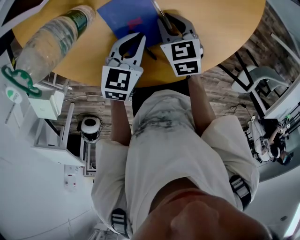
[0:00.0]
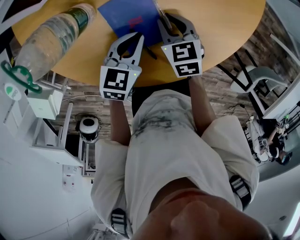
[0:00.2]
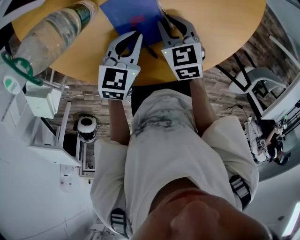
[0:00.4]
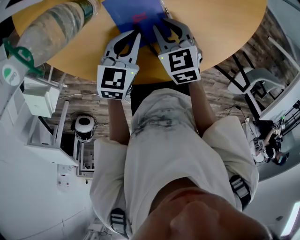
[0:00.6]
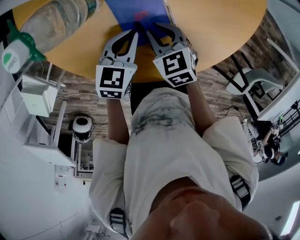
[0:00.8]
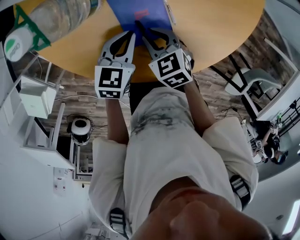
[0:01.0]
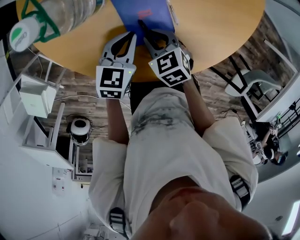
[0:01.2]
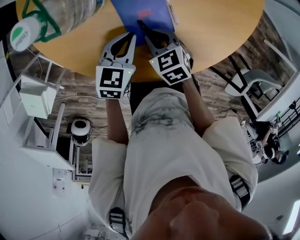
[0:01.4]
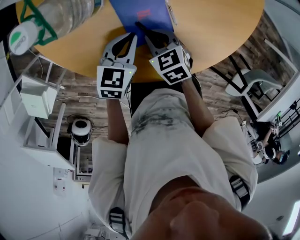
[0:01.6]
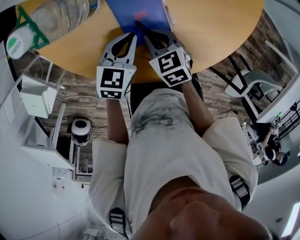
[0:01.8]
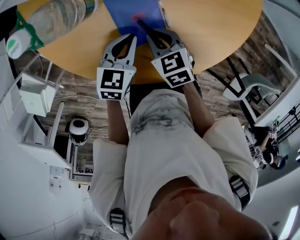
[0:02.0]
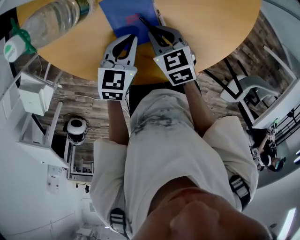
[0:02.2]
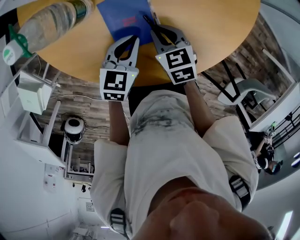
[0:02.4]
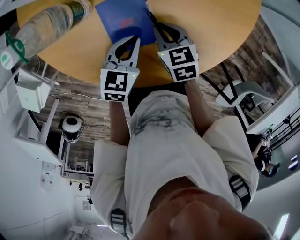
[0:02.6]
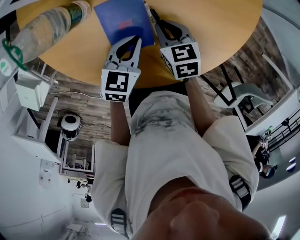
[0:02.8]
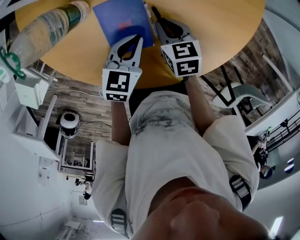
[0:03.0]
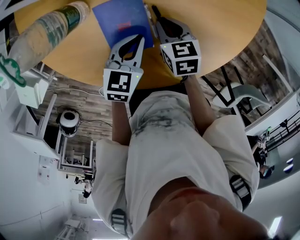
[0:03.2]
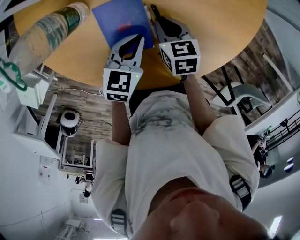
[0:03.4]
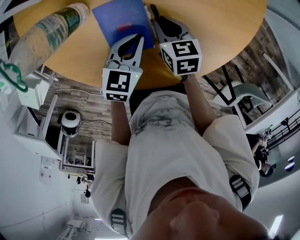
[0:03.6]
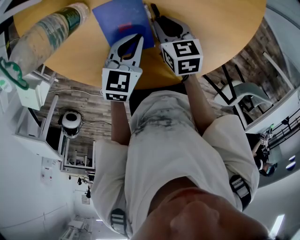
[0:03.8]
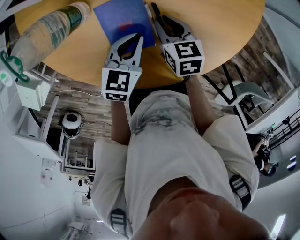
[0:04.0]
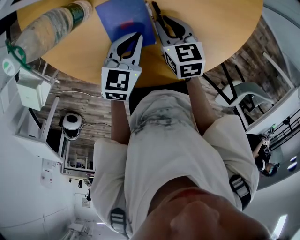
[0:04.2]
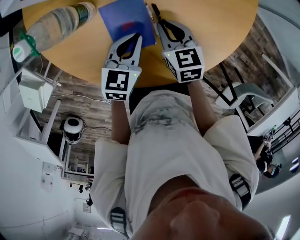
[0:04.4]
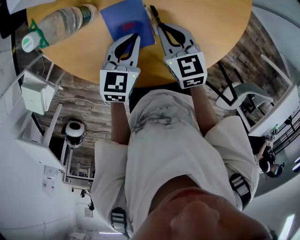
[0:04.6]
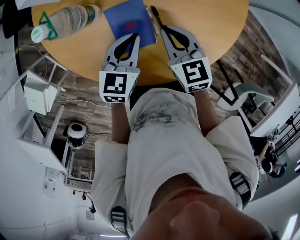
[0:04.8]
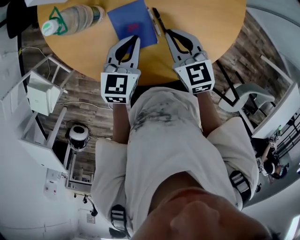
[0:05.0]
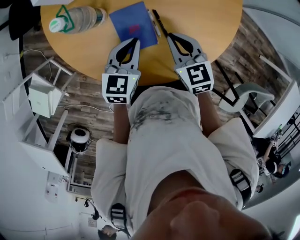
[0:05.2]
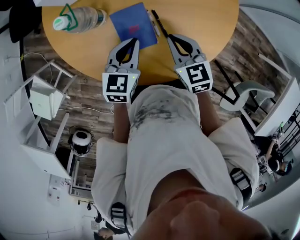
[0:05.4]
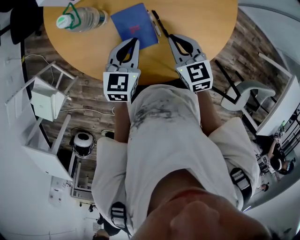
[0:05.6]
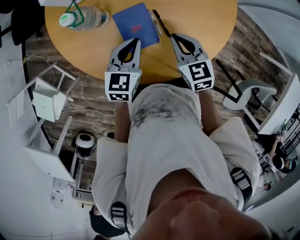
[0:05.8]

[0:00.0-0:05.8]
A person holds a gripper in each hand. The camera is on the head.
0:00.0 to 0:01.4: The left gripper is displaced to the left by some 5 cm, while the right gripper shifts roughly 10 cm backward and to the left.
0:01.4 to 0:02.8: The left gripper goes about 10 cm to the right. Meanwhile the right gripper moves to the right and forward, roughly 15 cm.
0:02.8 to 0:04.4: The grippers move only a little.
0:04.4 to 0:05.8: The right gripper goes about 15 cm upward and backward. The left gripper shifts about 10 cm upward.

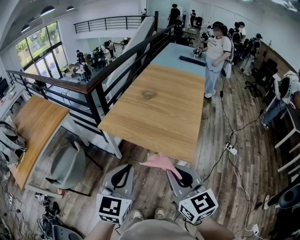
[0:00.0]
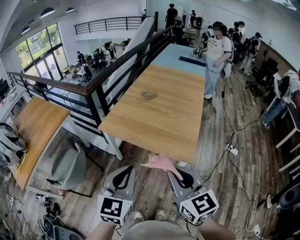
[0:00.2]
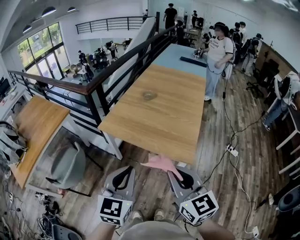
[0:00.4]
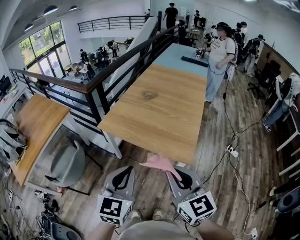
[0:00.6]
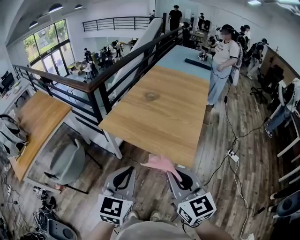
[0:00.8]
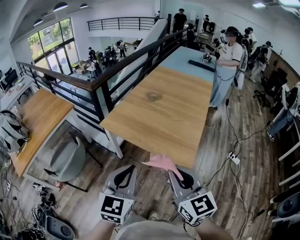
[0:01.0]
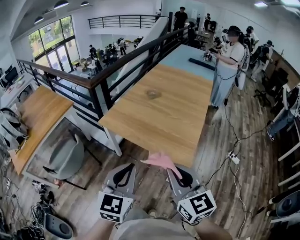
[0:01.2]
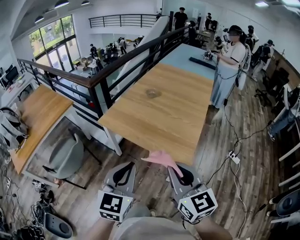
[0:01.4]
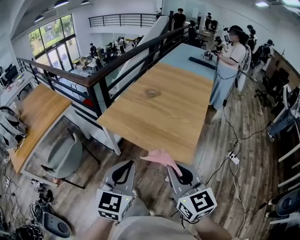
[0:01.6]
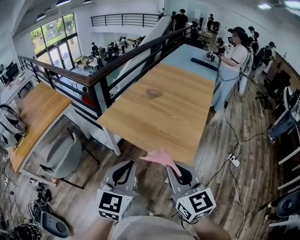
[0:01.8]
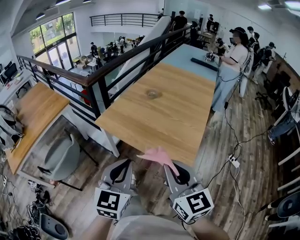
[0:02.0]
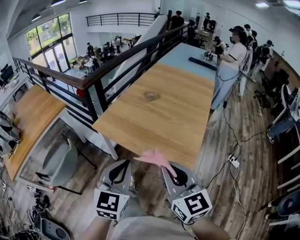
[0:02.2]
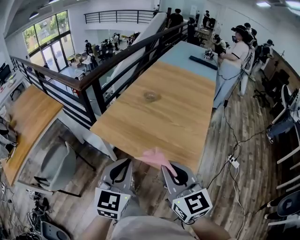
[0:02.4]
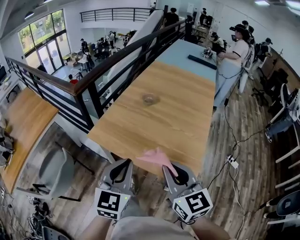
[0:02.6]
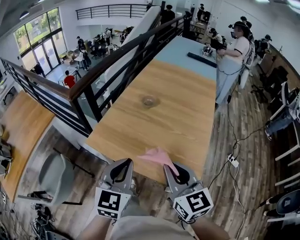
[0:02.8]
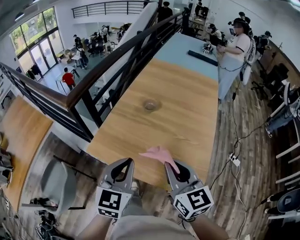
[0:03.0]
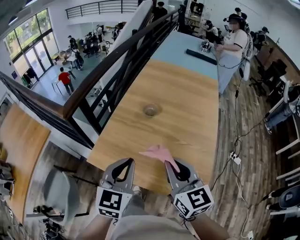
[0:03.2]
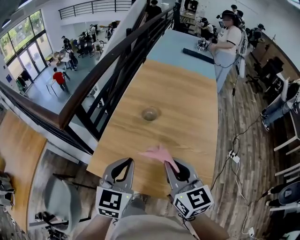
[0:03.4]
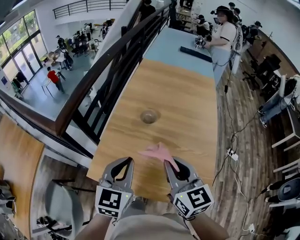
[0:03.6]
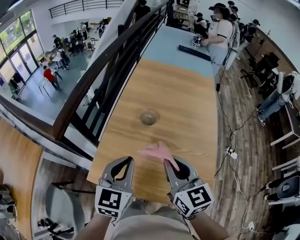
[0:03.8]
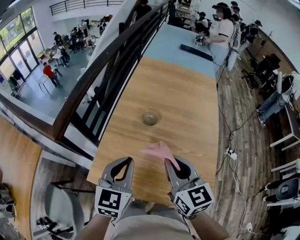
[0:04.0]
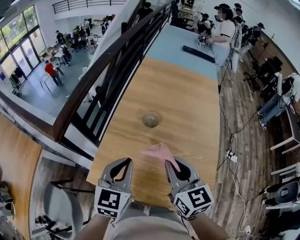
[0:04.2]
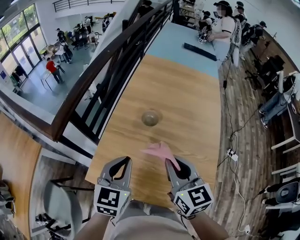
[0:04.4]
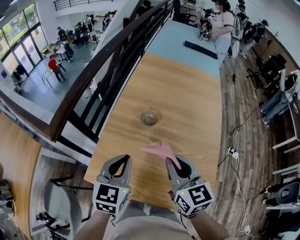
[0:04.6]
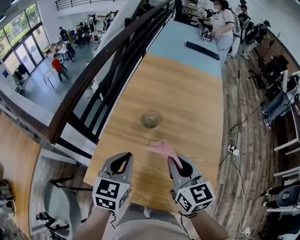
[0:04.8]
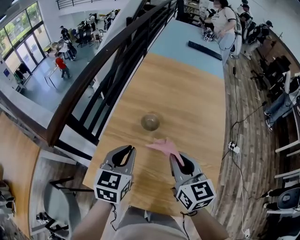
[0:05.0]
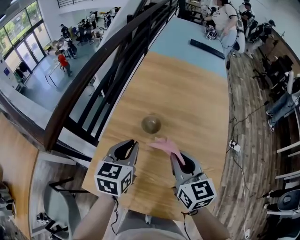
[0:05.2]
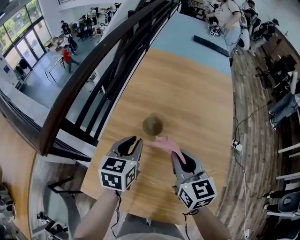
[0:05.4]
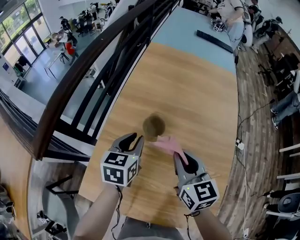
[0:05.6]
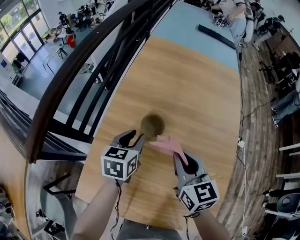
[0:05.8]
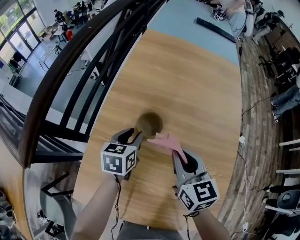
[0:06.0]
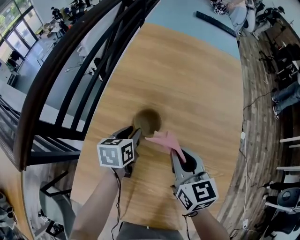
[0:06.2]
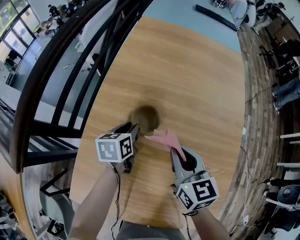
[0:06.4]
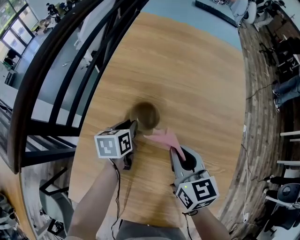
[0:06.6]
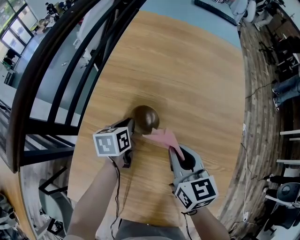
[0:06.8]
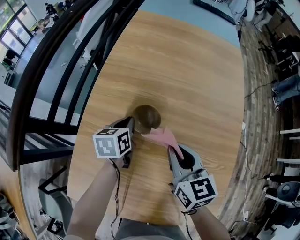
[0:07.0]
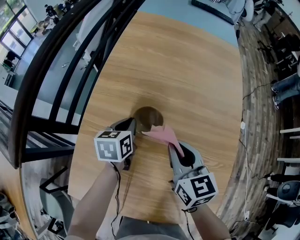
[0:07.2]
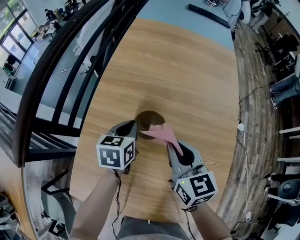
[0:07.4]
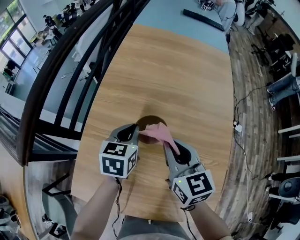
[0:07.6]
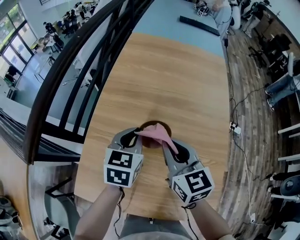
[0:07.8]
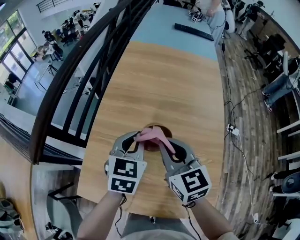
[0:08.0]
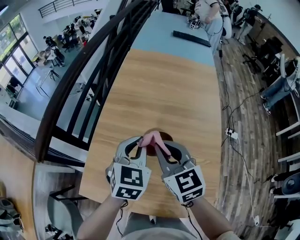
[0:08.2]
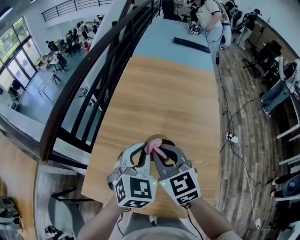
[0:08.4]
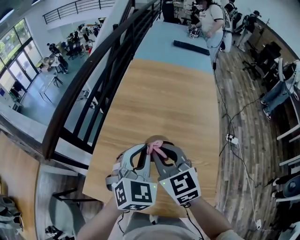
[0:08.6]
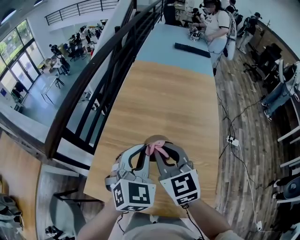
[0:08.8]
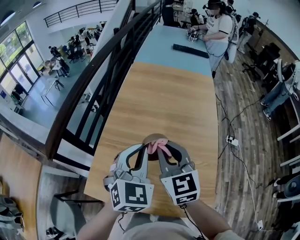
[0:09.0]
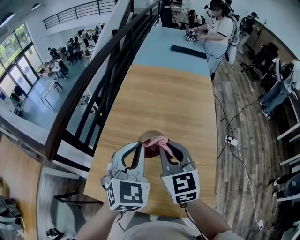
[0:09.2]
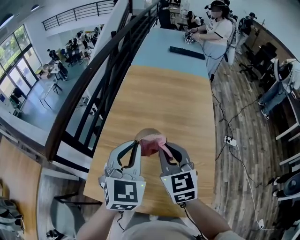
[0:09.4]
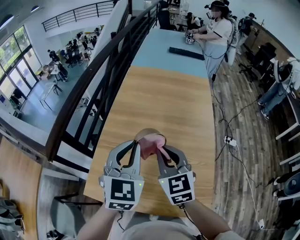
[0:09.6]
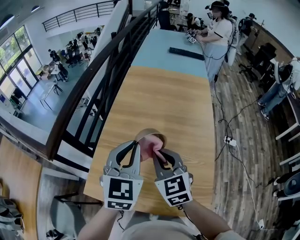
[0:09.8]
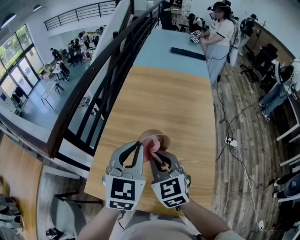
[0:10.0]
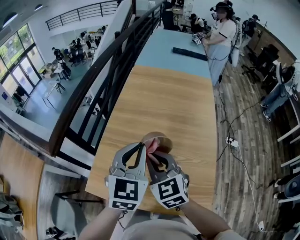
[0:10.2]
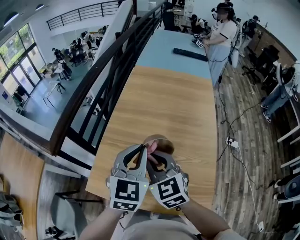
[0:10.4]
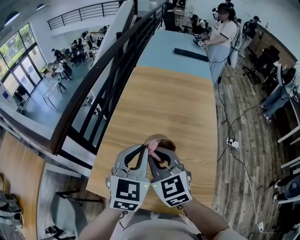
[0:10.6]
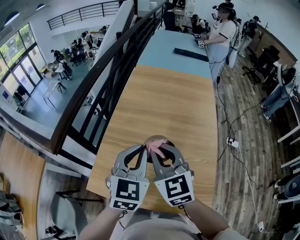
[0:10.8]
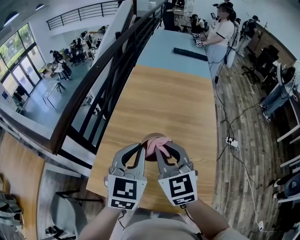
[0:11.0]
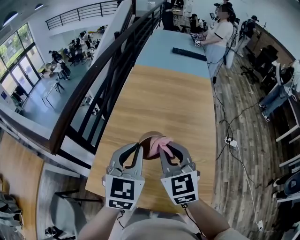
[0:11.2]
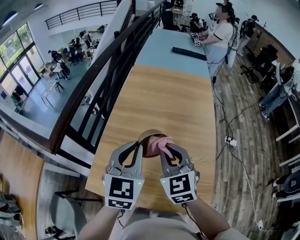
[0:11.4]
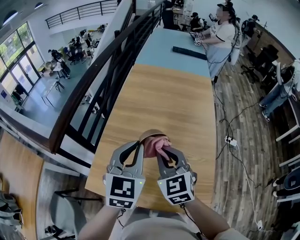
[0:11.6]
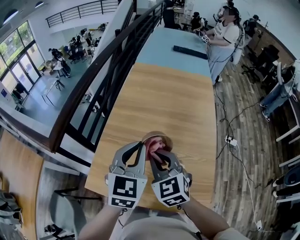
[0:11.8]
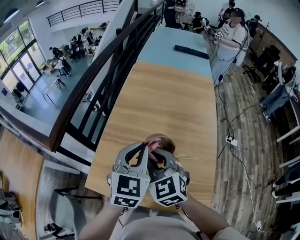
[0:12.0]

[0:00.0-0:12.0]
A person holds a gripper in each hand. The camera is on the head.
0:00.0 to 0:01.6: The two grippers go about 10 cm to the right.
0:01.6 to 0:03.0: The two grippers go about 35 cm forward.
0:03.0 to 0:04.4: The two grippers go roughly 20 cm forward.
0:04.4 to 0:06.0: Both grippers travel together forward and downward, approximately 30 cm. The left gripper changes its angle by roughly 30 degrees, and opens.
0:06.0 to 0:07.6: The right gripper travels downward and back again, about 5 cm each way. The left gripper reaches approximately 10 cm downward, then returns, and closes.
0:07.6 to 0:09.0: The right gripper heads upward and backward, covering about 20 cm. Meanwhile the left gripper moves upward and backward, approximately 30 cm, and changes its angle by about 40 degrees.
0:09.0 to 0:10.4: The right gripper goes approximately 10 cm backward and to the left.
0:10.4 to 0:12.0: The grippers stay close to where they were, moving slightly.

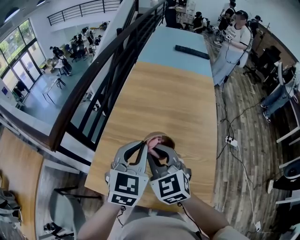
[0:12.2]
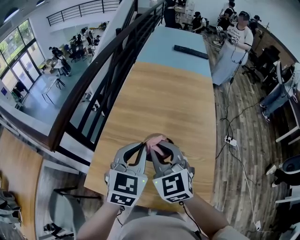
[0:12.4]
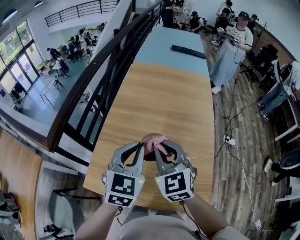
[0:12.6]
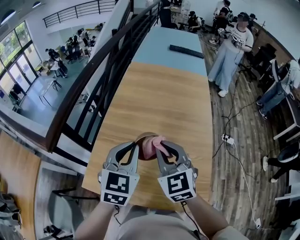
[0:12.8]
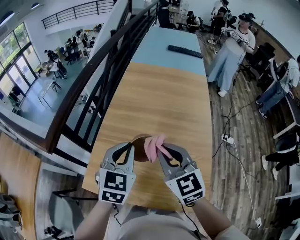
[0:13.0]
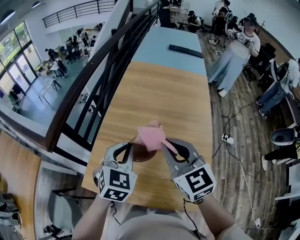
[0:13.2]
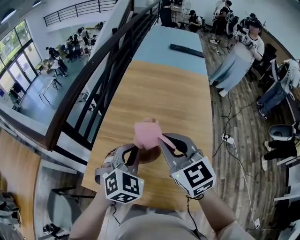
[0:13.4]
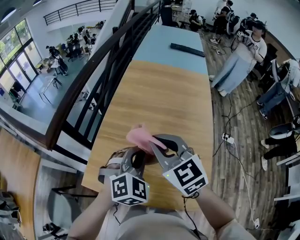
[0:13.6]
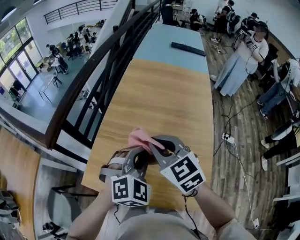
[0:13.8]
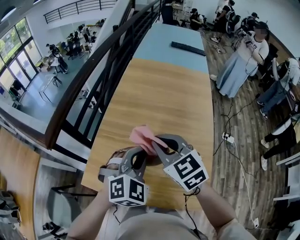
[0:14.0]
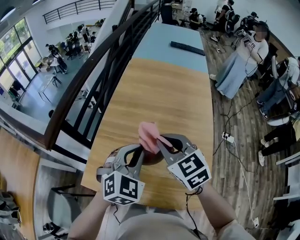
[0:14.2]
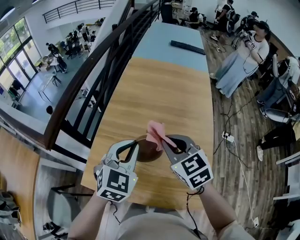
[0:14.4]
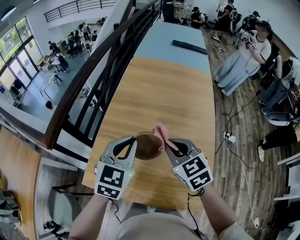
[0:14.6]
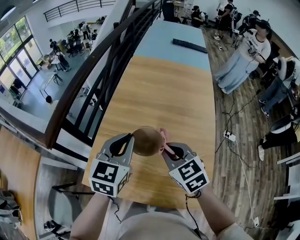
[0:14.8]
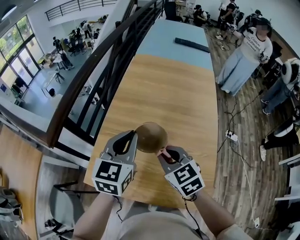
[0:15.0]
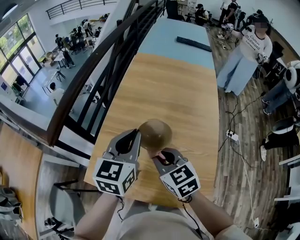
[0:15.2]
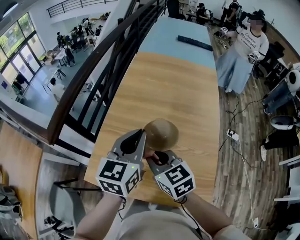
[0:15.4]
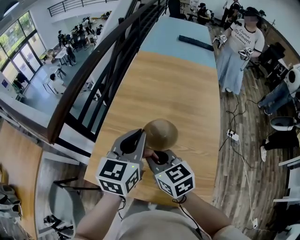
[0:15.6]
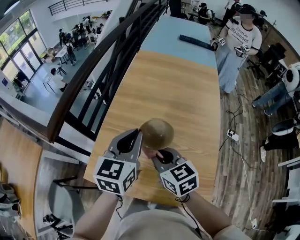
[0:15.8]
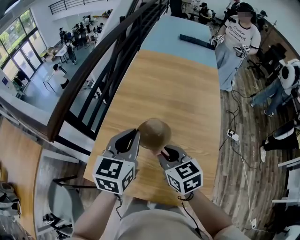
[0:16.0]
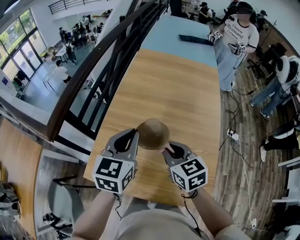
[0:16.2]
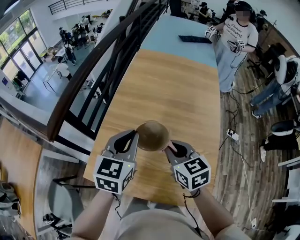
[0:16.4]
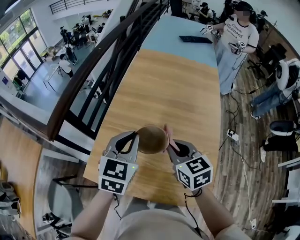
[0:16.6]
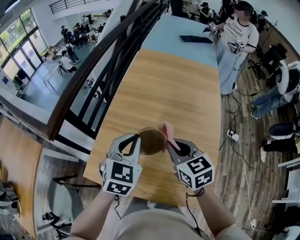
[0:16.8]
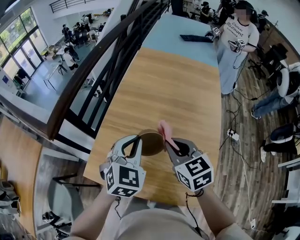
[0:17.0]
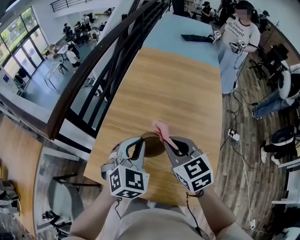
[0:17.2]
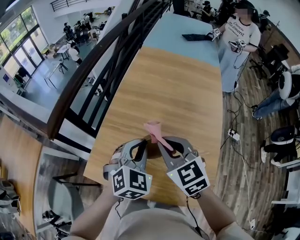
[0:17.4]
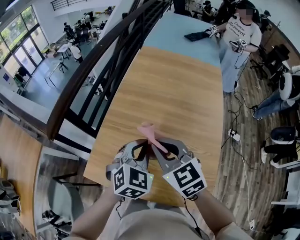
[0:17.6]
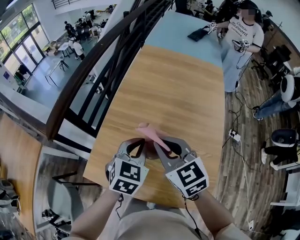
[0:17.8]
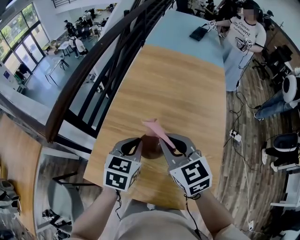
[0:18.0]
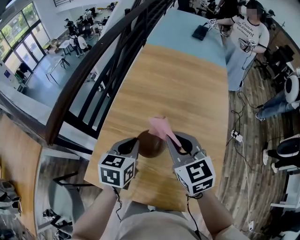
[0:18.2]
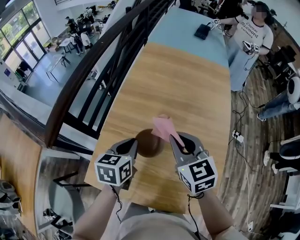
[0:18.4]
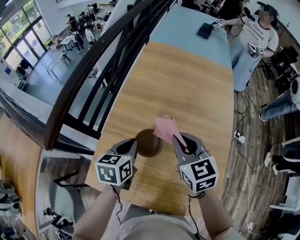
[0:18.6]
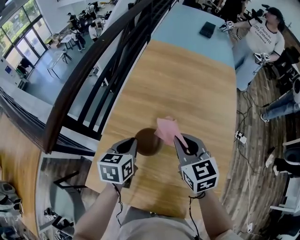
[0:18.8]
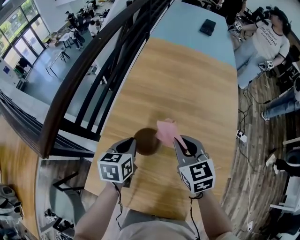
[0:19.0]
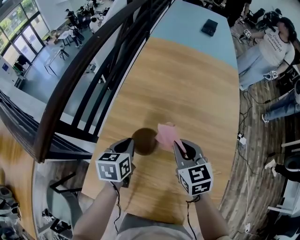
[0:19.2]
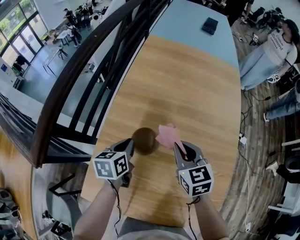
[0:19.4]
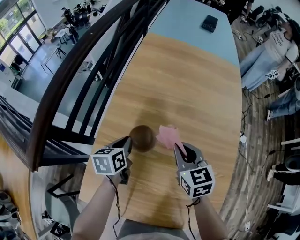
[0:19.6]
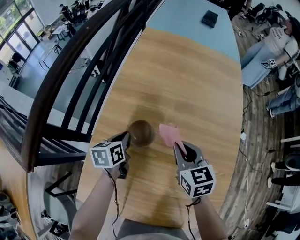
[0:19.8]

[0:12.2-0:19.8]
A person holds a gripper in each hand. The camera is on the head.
0:12.2 to 0:13.8: The left gripper moves some 5 cm, and rotates about 40 degrees.
0:13.8 to 0:15.2: The left gripper goes approximately 10 cm forward and to the left, and rotates around the line of its fingers by roughly 50 degrees, counterclockwise from behind; the right gripper heads downward, covering about 10 cm.
0:15.2 to 0:16.8: The right gripper goes approximately 5 cm to the right. Meanwhile the left gripper swivels approximately 20 degrees.
0:16.8 to 0:18.2: The left gripper heads downward and forward, covering approximately 10 cm, and changes its angle by roughly 30 degrees, while the right gripper heads forward, covering about 5 cm.
0:18.2 to 0:19.8: The two grippers go some 25 cm downward and forward. The left gripper changes its angle by approximately 20 degrees.
